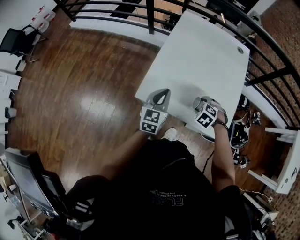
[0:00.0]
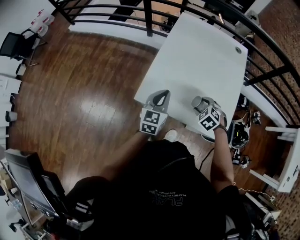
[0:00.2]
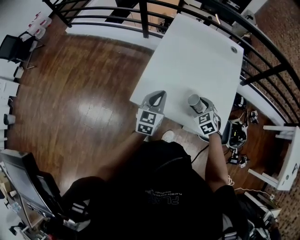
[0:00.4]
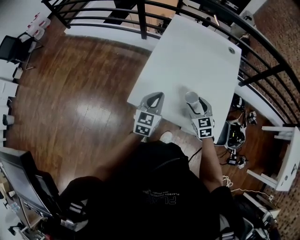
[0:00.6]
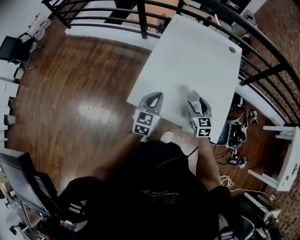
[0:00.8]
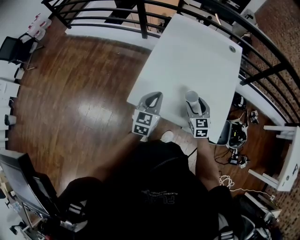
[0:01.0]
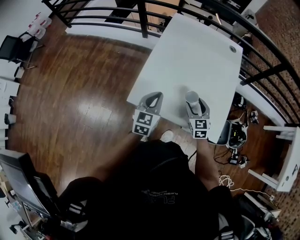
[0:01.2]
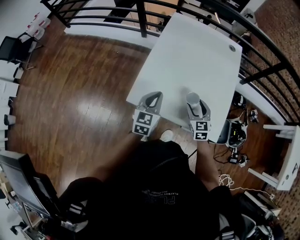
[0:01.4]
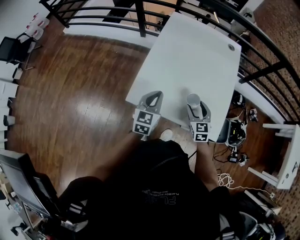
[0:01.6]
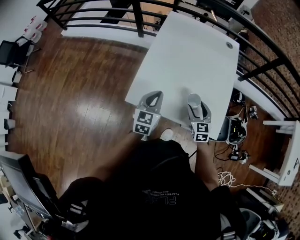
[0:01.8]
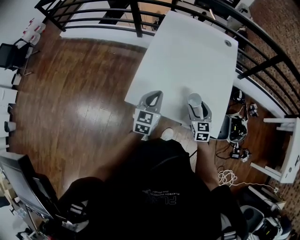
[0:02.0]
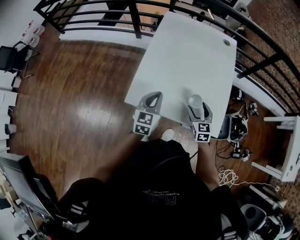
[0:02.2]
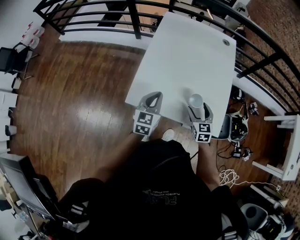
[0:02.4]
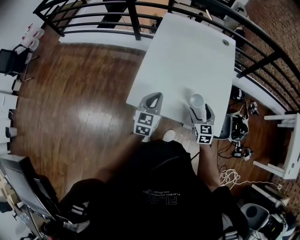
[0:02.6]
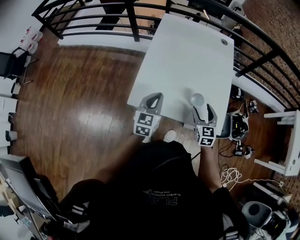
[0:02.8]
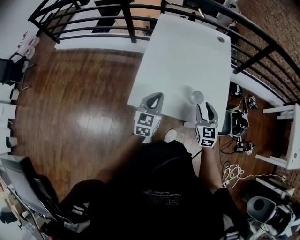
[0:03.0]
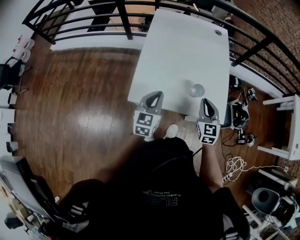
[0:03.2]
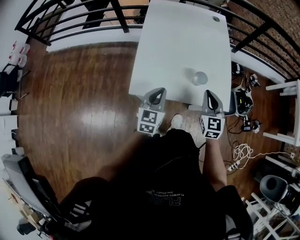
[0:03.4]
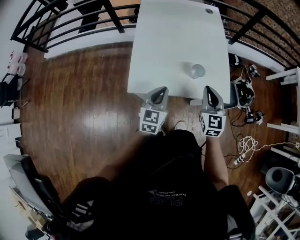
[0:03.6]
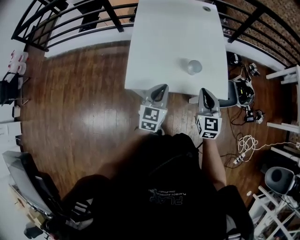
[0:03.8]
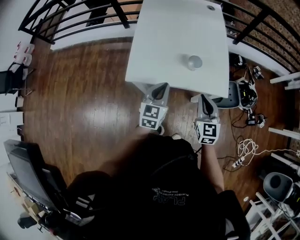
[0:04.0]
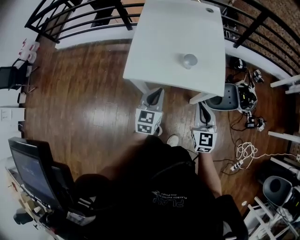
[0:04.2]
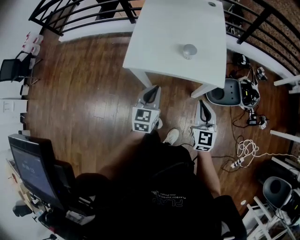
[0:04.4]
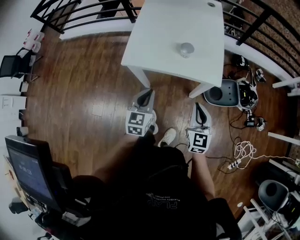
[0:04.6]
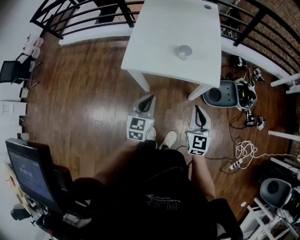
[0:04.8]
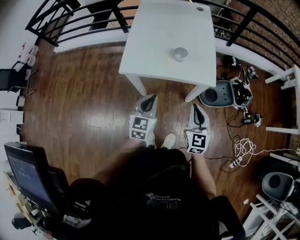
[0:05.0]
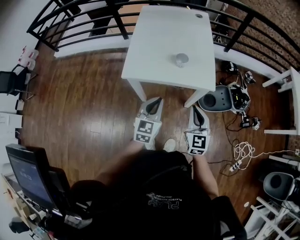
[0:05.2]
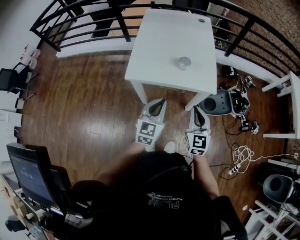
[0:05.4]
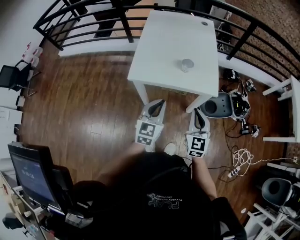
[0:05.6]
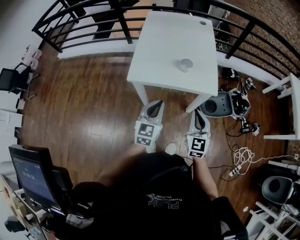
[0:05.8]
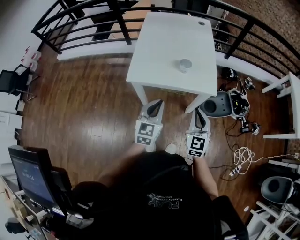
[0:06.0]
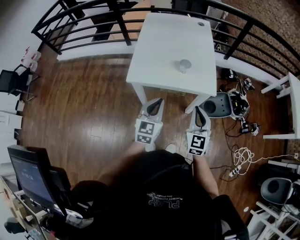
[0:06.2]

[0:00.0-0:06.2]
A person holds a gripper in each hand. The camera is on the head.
0:00.0 to 0:01.6: The right gripper tips its fingers upward by about 40 degrees.
0:01.6 to 0:03.2: The right gripper shifts some 10 cm upward and backward, and closes.
0:03.2 to 0:04.6: The grippers both shift backward by about 20 cm.
0:04.6 to 0:06.2: Both grippers travel together upward, some 5 cm.

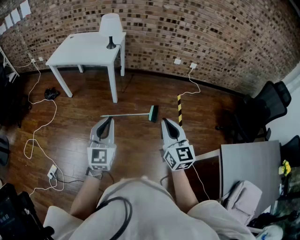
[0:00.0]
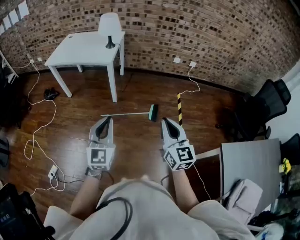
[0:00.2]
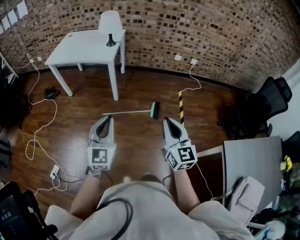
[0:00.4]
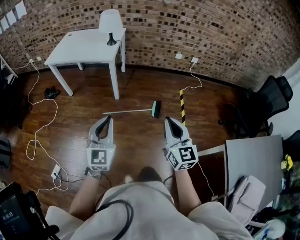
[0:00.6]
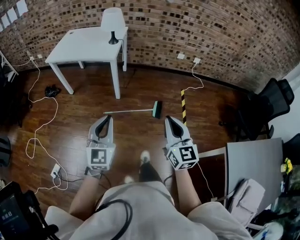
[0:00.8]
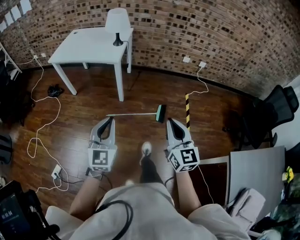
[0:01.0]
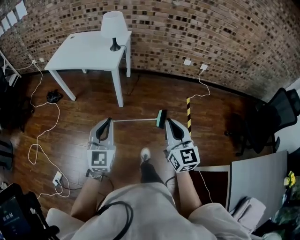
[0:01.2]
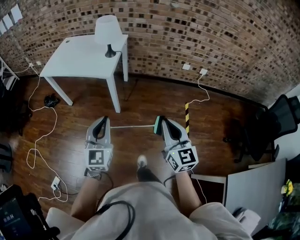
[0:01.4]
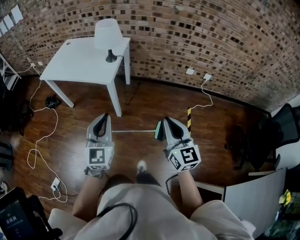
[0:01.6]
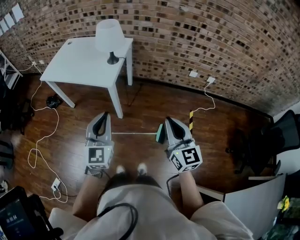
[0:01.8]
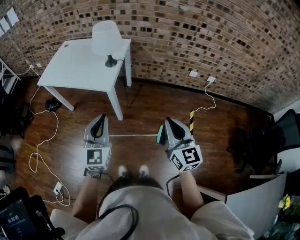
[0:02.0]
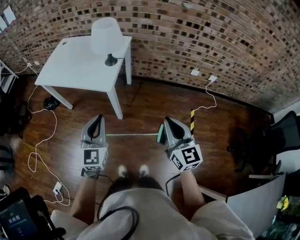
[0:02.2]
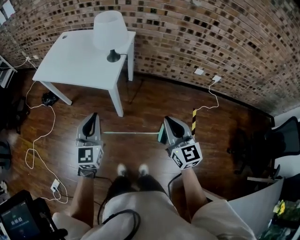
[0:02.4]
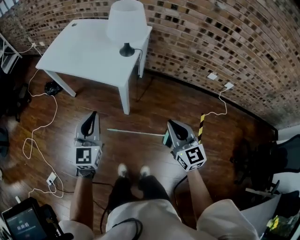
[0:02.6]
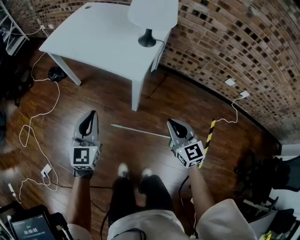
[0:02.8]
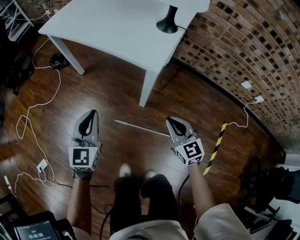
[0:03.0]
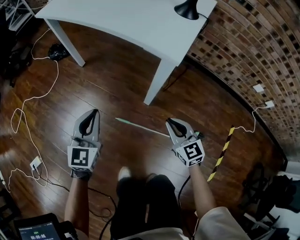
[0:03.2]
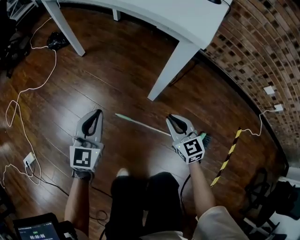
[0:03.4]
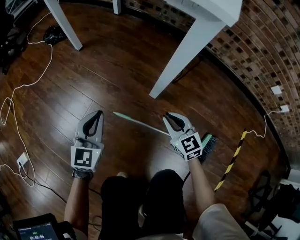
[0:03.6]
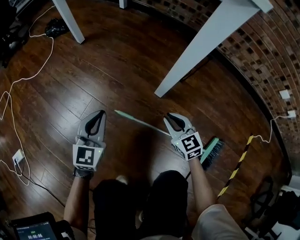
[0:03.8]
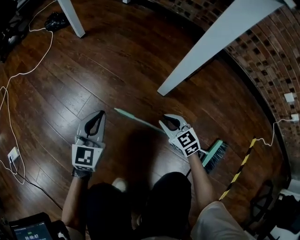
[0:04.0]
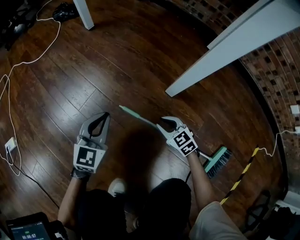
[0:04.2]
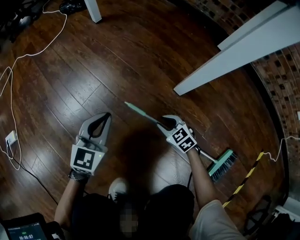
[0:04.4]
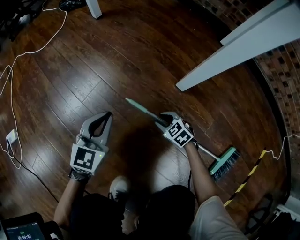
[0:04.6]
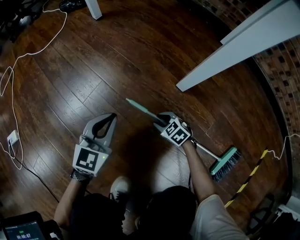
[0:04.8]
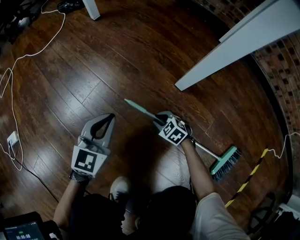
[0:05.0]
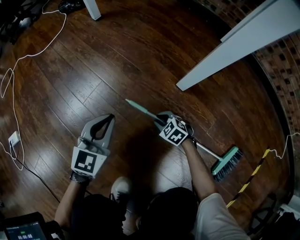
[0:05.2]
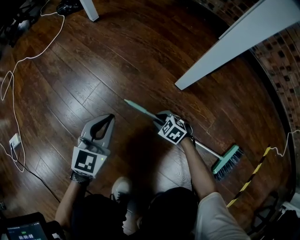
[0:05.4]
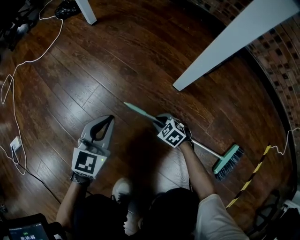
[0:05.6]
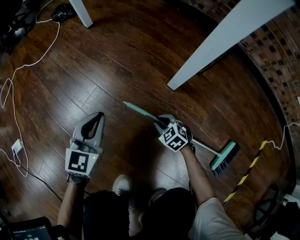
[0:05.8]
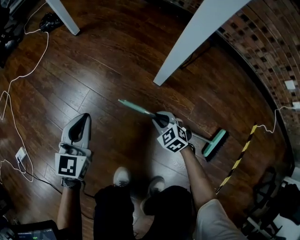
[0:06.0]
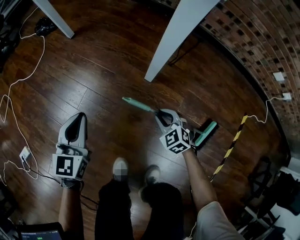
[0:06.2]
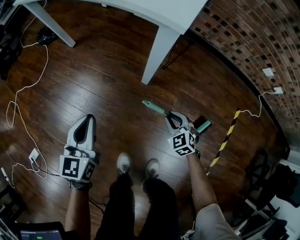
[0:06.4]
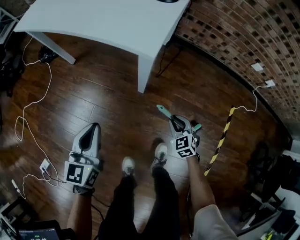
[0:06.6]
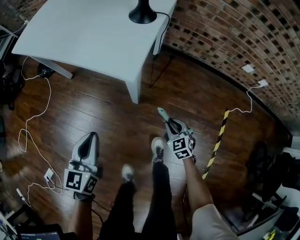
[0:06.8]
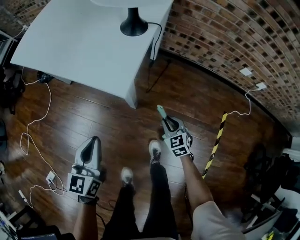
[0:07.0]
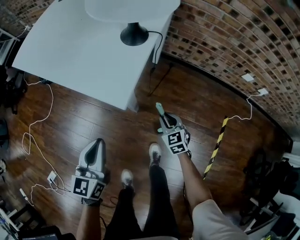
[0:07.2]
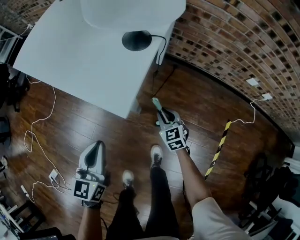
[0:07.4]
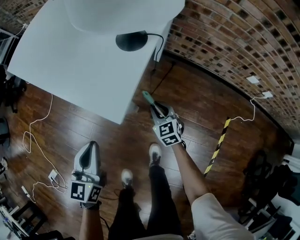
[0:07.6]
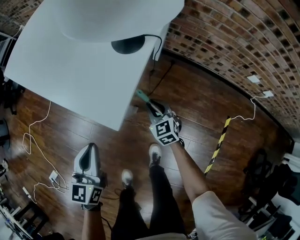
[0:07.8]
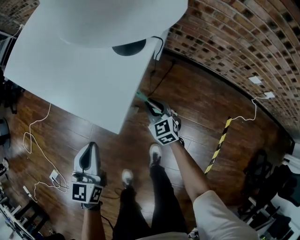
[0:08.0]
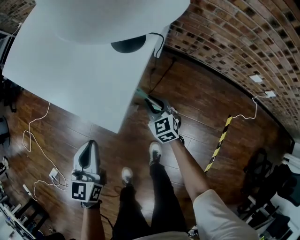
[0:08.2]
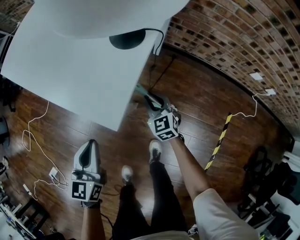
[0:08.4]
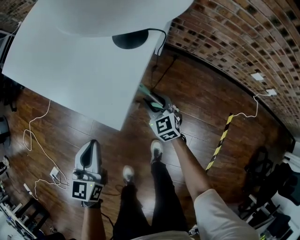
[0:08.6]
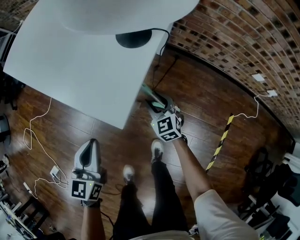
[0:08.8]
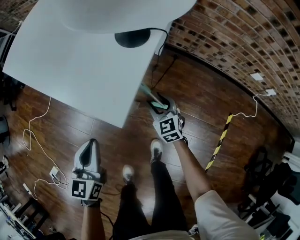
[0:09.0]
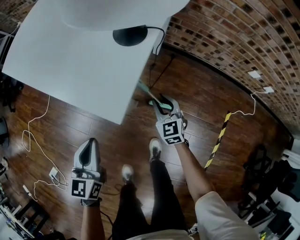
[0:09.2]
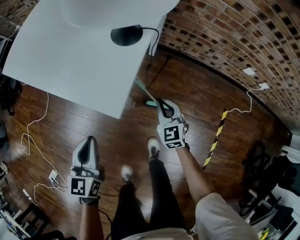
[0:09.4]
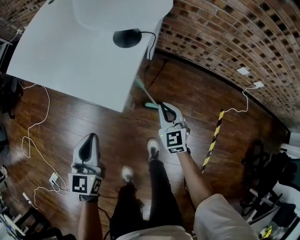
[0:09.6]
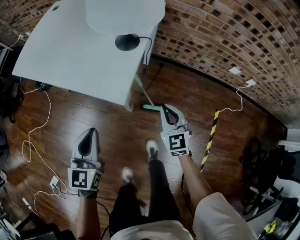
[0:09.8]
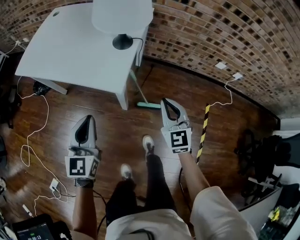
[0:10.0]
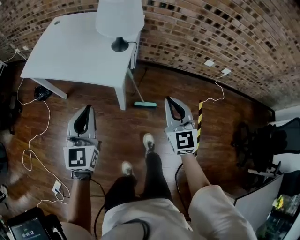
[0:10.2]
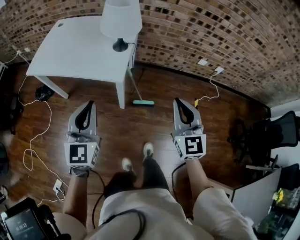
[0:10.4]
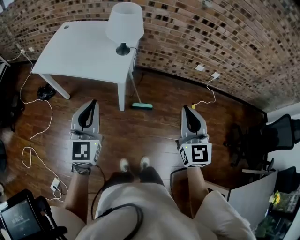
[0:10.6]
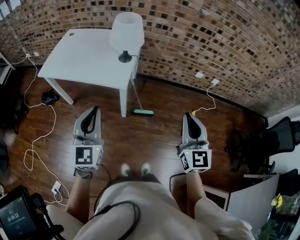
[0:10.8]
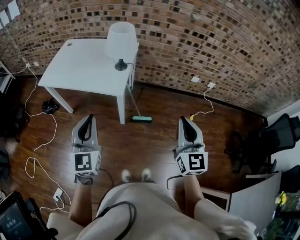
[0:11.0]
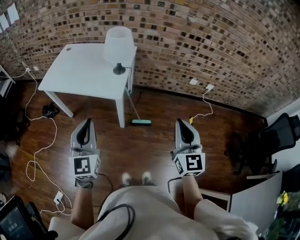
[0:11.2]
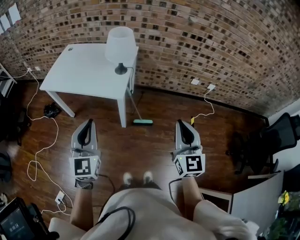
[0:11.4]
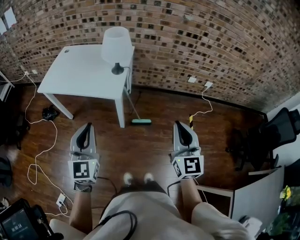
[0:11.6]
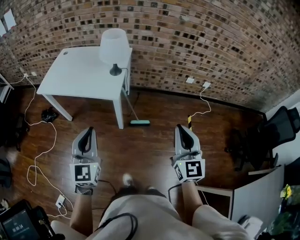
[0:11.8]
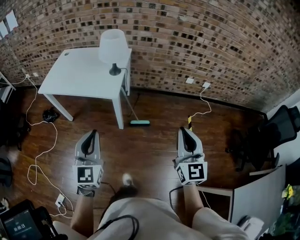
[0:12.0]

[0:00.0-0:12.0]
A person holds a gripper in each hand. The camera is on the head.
0:00.0 to 0:01.6: Both grippers travel together forward, roughly 30 cm.
0:01.6 to 0:03.0: The right gripper shifts roughly 50 cm downward and forward, and swivels some 30 degrees; the left gripper heads downward, forward and to the left, covering approximately 50 cm, and turns by approximately 20 degrees.
0:03.0 to 0:04.4: The two grippers go some 50 cm downward. The right gripper rotates approximately 40 degrees, and opens its fingers.
0:04.4 to 0:06.0: The grippers both shift upward by roughly 10 cm.
0:06.0 to 0:07.6: The left gripper heads upward and to the right, covering some 40 cm. Meanwhile the right gripper moves upward, forward and to the right, about 40 cm, and changes its angle by approximately 30 degrees.
0:07.6 to 0:09.0: The right gripper opens up.
0:09.0 to 0:10.4: The left gripper is displaced upward by about 30 cm, and turns by about 30 degrees. Meanwhile the right gripper shifts roughly 60 cm upward and backward, swivels roughly 40 degrees, and closes its fingers.
0:10.4 to 0:12.0: The right gripper goes about 20 cm backward, upward and to the right. Meanwhile the left gripper is displaced backward by about 15 cm.

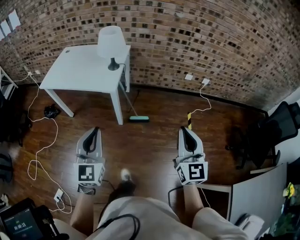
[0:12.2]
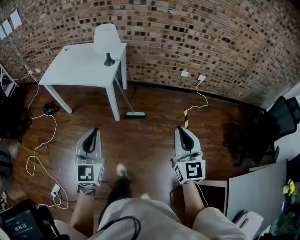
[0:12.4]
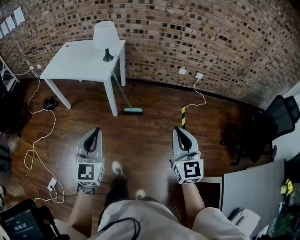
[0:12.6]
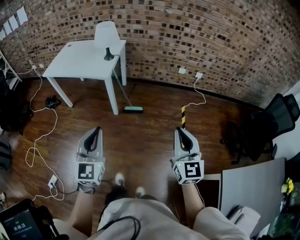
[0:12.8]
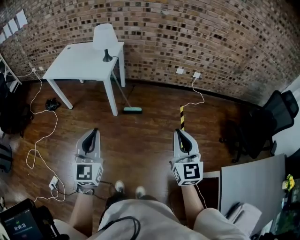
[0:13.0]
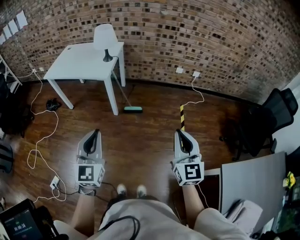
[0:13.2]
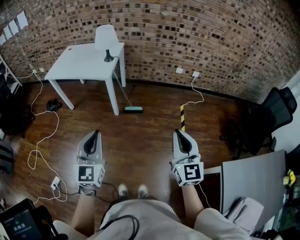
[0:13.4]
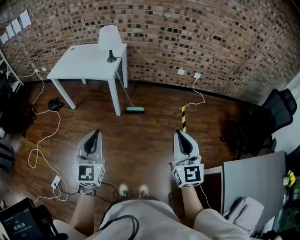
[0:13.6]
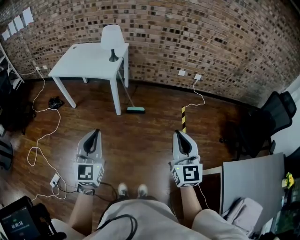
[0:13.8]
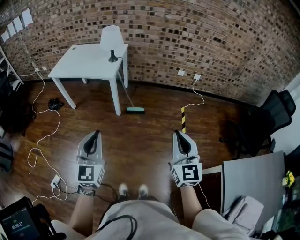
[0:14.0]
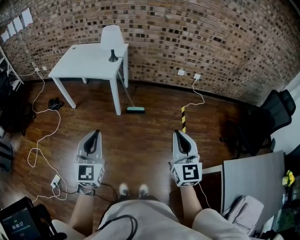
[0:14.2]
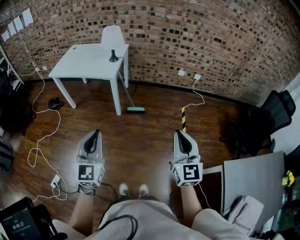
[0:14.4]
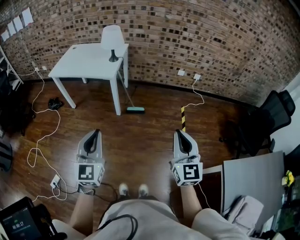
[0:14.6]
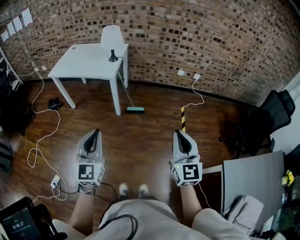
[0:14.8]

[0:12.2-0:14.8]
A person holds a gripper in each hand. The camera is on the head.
0:12.2 to 0:13.4: The grippers both shift backward by approximately 20 cm.
0:13.4 to 0:14.8: The grippers stay close to where they were, moving slightly.

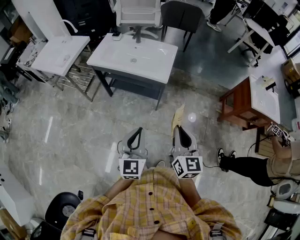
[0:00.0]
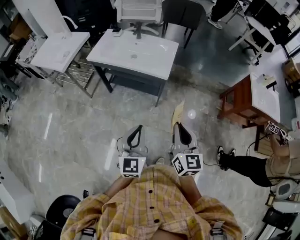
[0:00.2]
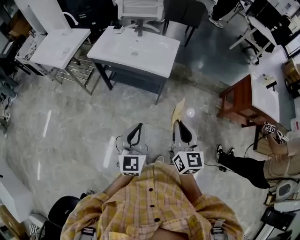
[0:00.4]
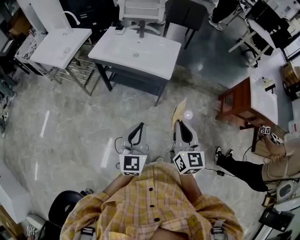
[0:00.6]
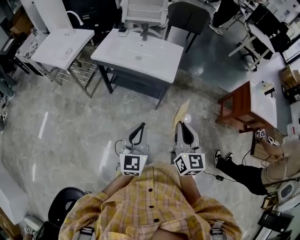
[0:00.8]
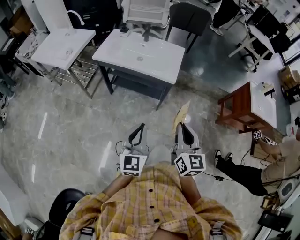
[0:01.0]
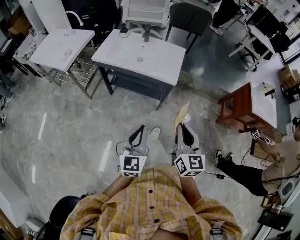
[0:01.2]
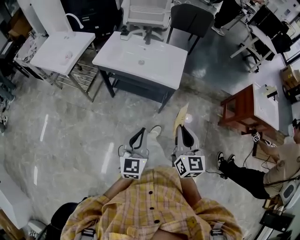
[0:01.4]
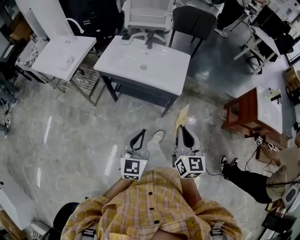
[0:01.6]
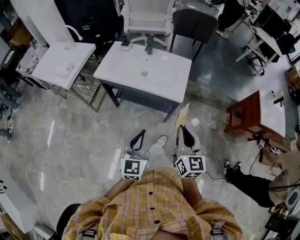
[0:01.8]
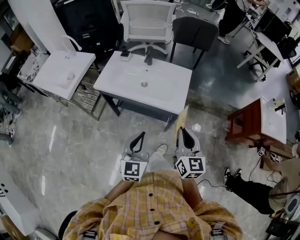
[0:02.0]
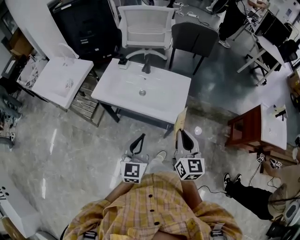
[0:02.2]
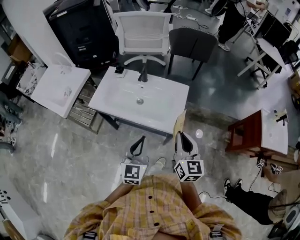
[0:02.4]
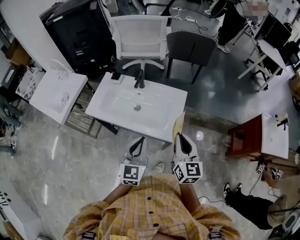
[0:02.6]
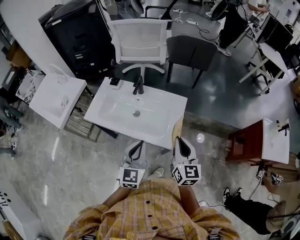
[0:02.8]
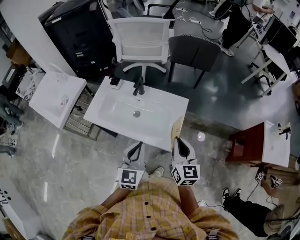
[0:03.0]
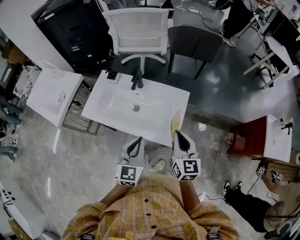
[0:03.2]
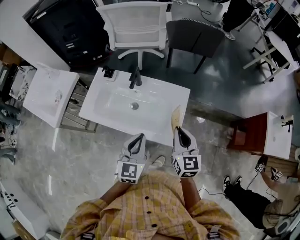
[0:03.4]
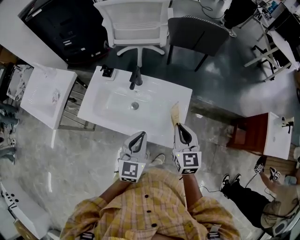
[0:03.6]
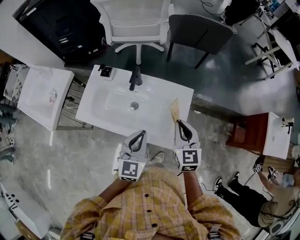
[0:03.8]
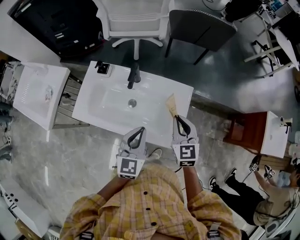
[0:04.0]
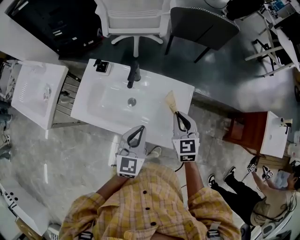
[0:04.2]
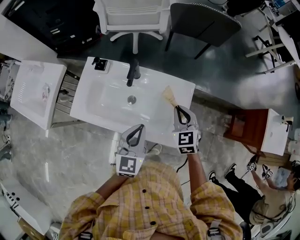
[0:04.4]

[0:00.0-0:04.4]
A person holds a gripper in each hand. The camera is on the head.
0:00.0 to 0:01.4: Both grippers travel together to the left and forward, about 10 cm.
0:01.4 to 0:03.0: Both grippers travel together forward, approximately 35 cm.
0:03.0 to 0:04.4: The left gripper goes some 15 cm forward and downward; the right gripper goes about 20 cm forward and downward, and turns by approximately 30 degrees.
